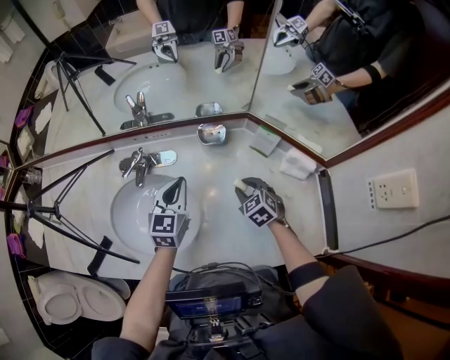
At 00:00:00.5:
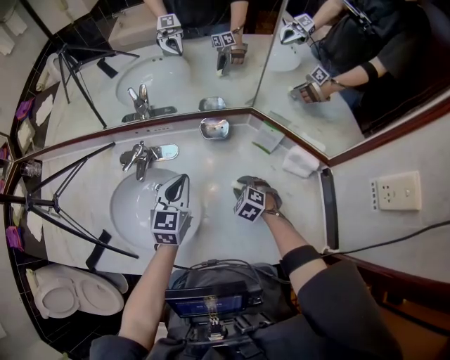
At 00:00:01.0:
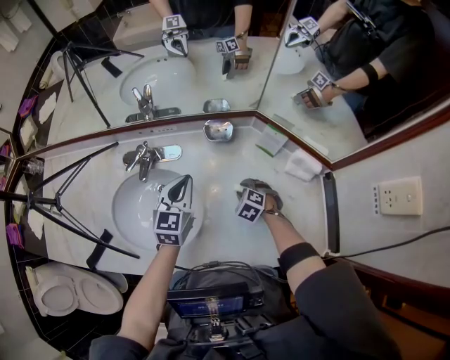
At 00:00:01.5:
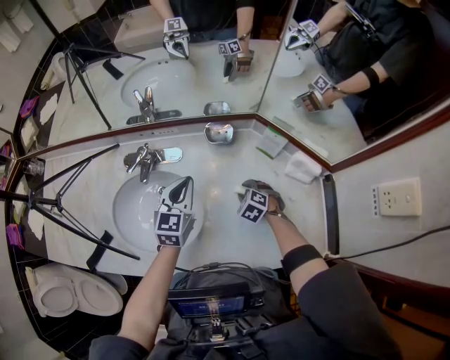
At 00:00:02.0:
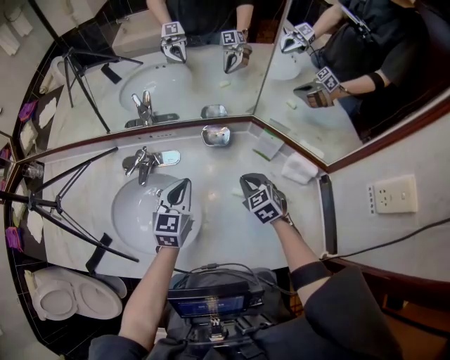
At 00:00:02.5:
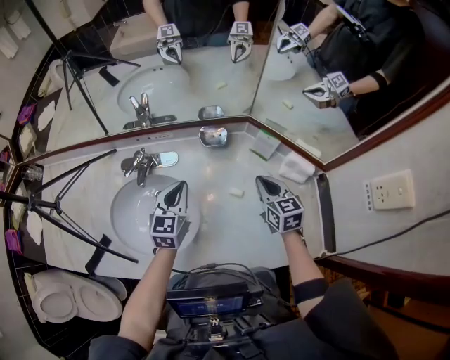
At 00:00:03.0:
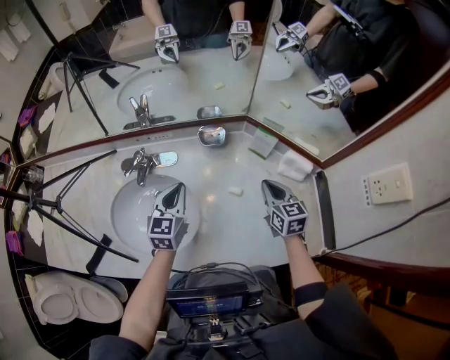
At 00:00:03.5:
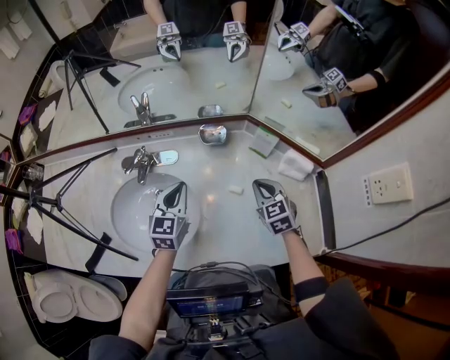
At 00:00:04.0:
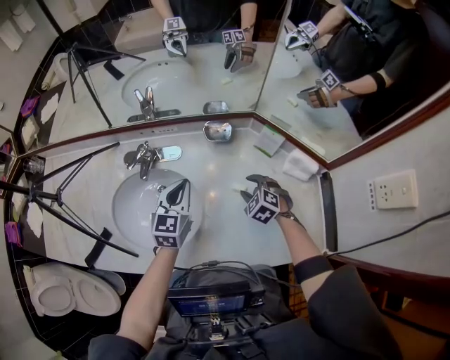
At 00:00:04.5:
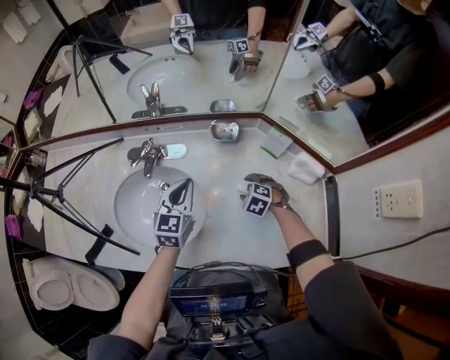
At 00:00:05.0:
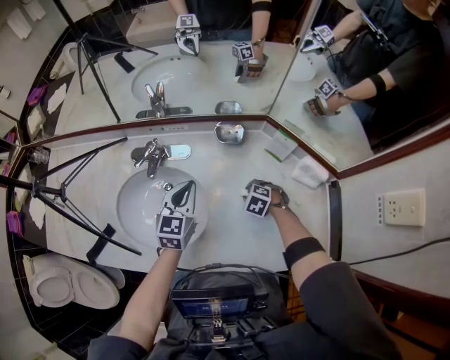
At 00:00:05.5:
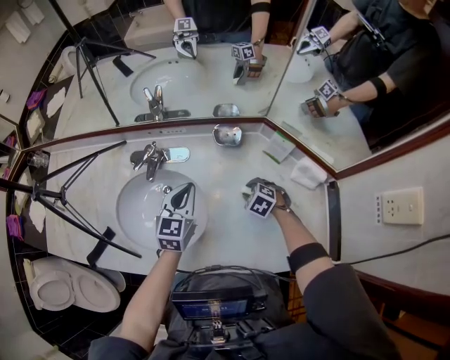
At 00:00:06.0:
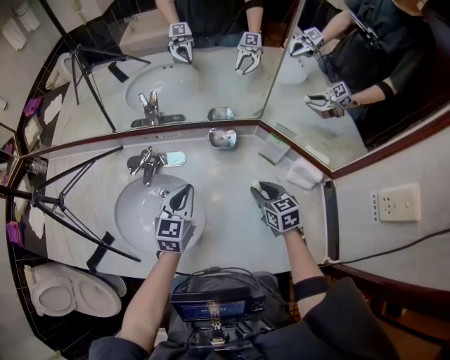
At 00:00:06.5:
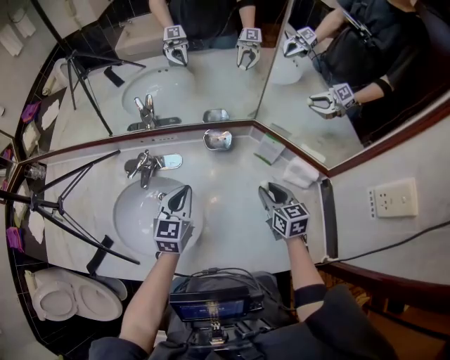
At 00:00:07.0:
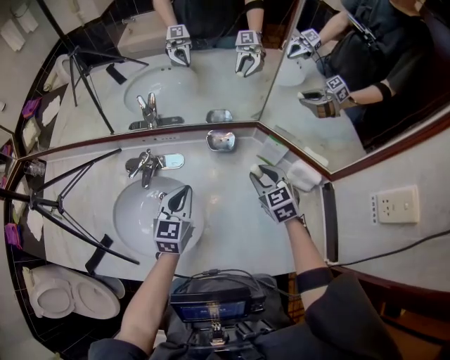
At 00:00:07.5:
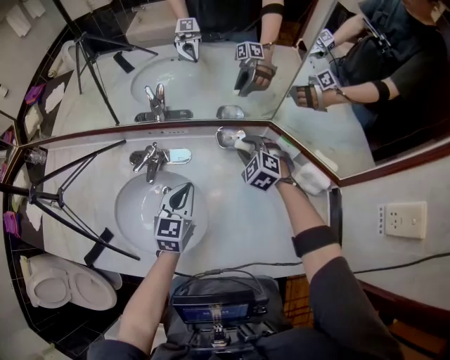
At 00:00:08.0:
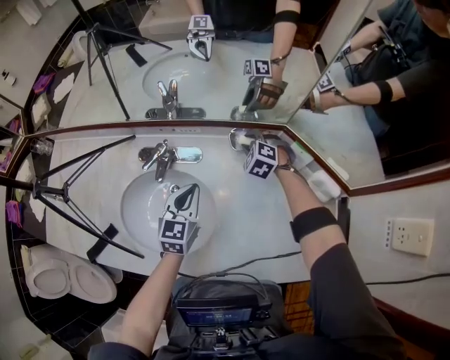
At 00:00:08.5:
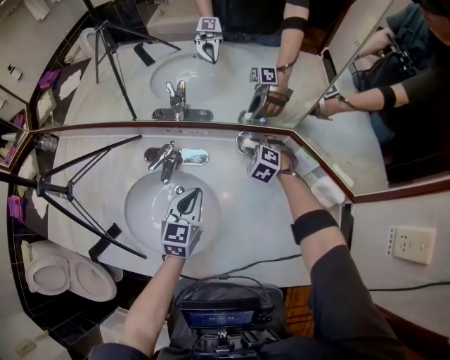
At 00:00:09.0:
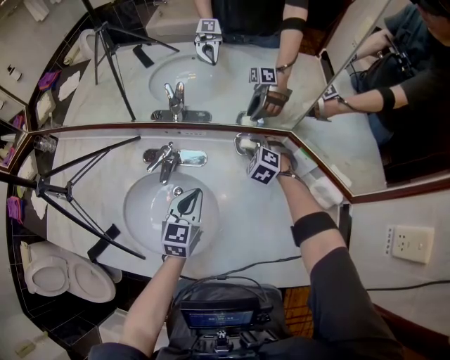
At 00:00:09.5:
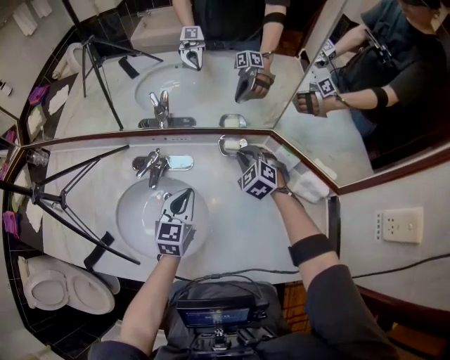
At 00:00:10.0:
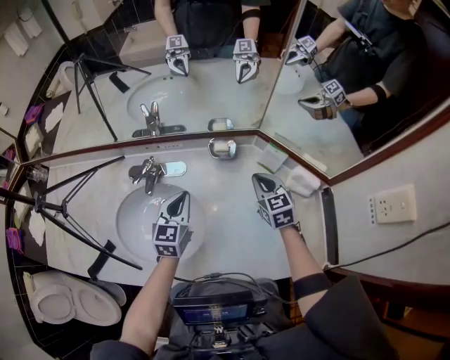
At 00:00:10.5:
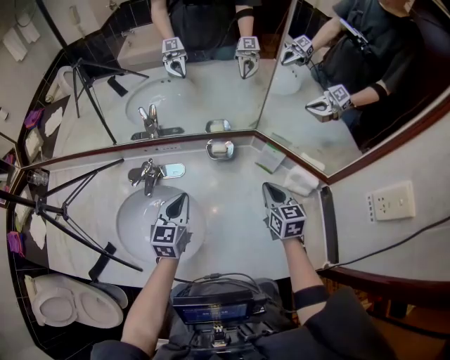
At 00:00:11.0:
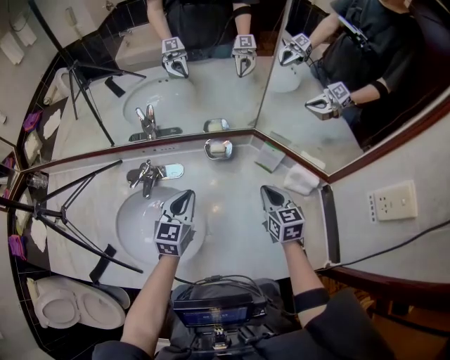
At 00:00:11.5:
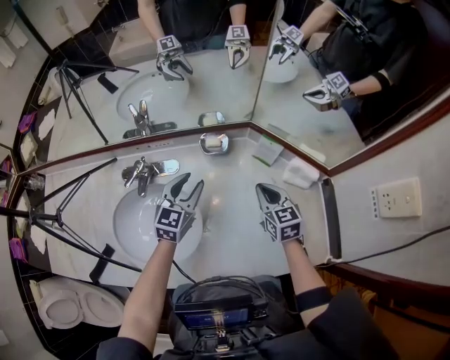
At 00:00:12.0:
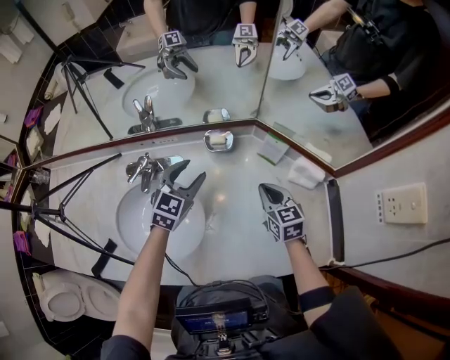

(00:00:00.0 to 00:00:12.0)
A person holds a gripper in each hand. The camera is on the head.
00:00:00.0 - 00:00:02.0: The right gripper moves about 10 cm downward and comes back, and closes.
00:00:02.0 - 00:00:04.0: The right gripper heads downward, covering roughly 5 cm, turns by approximately 20 degrees, and opens up.
00:00:04.0 - 00:00:06.0: The right gripper moves approximately 5 cm, and rotates around the line of its fingers by about 40 degrees, clockwise from behind.
00:00:06.0 - 00:00:08.0: The right gripper goes approximately 20 cm forward and to the left, and rotates around the line of its fingers by some 60 degrees, counterclockwise from behind.
00:00:08.0 - 00:00:10.0: The right gripper travels backward, to the right and upward by some 20 cm, twists about 50 degrees clockwise, seen from behind, and closes.
00:00:10.0 - 00:00:12.0: The left gripper is displaced forward and to the right by some 10 cm, swivels some 30 degrees, and opens up, while the right gripper shifts by some 5 cm.

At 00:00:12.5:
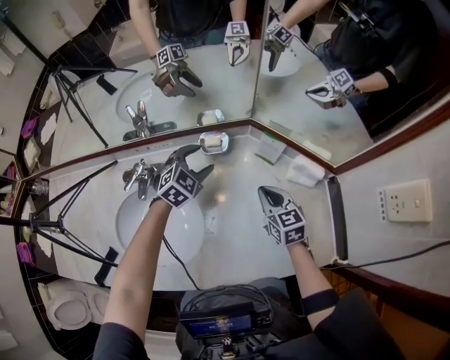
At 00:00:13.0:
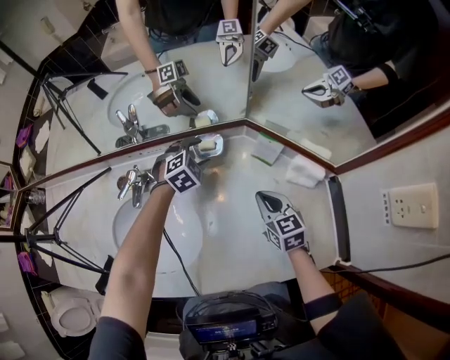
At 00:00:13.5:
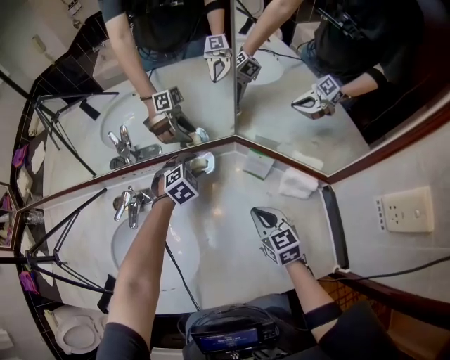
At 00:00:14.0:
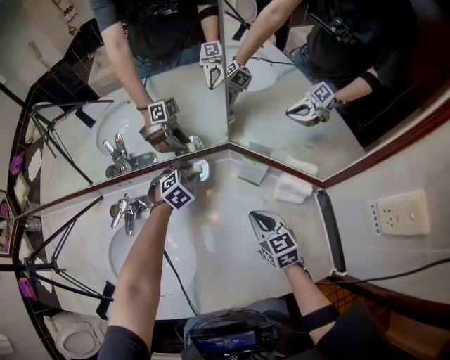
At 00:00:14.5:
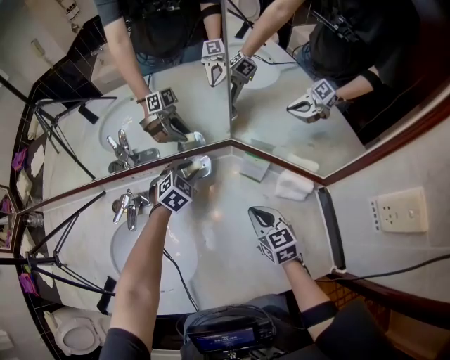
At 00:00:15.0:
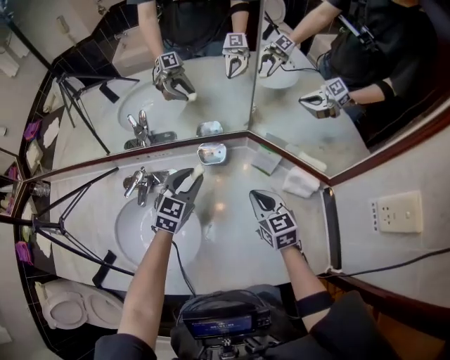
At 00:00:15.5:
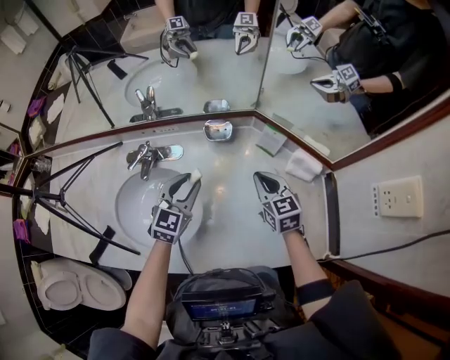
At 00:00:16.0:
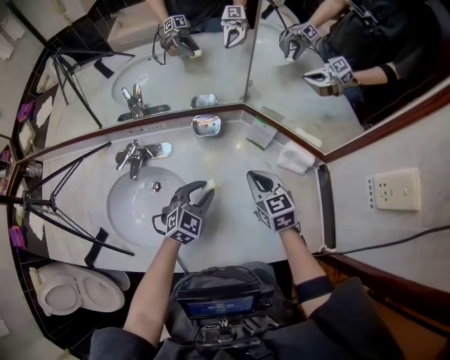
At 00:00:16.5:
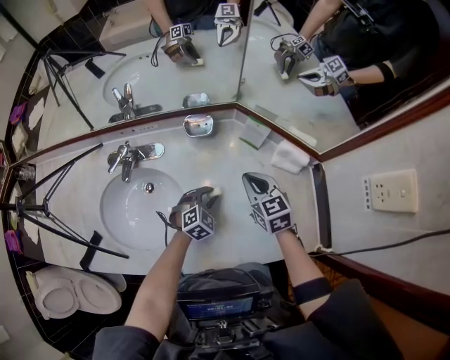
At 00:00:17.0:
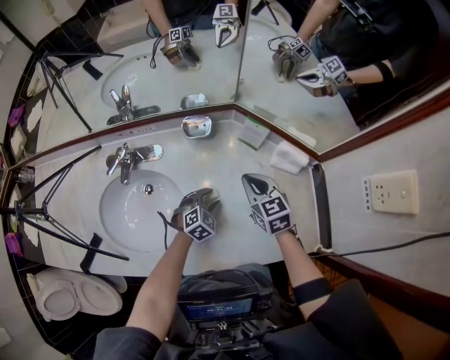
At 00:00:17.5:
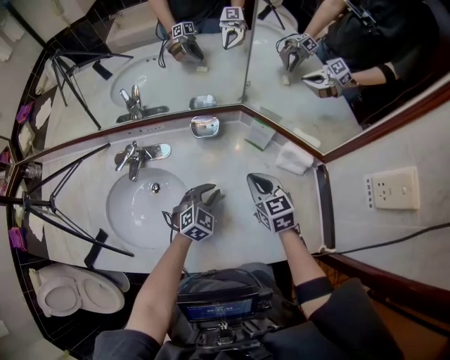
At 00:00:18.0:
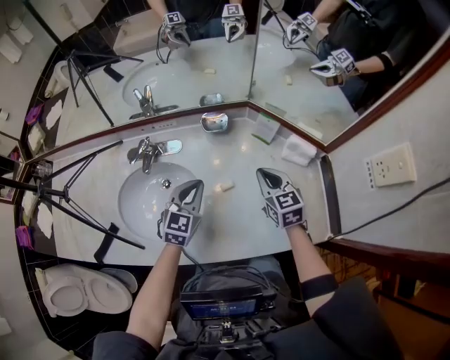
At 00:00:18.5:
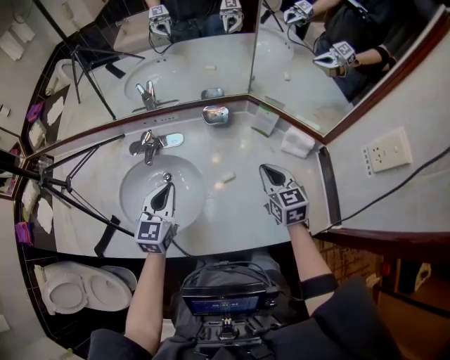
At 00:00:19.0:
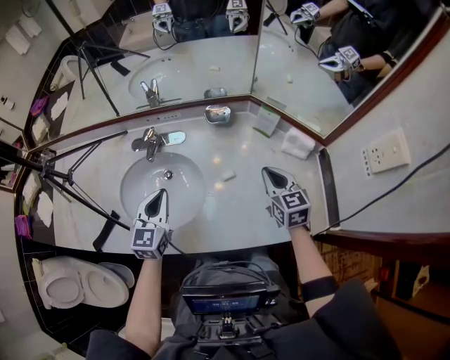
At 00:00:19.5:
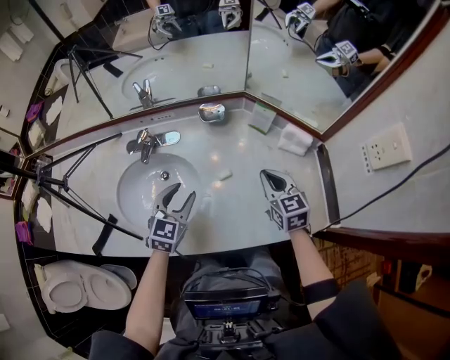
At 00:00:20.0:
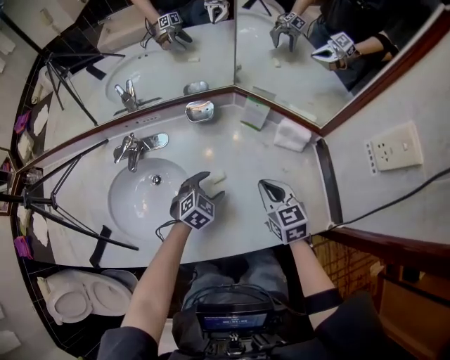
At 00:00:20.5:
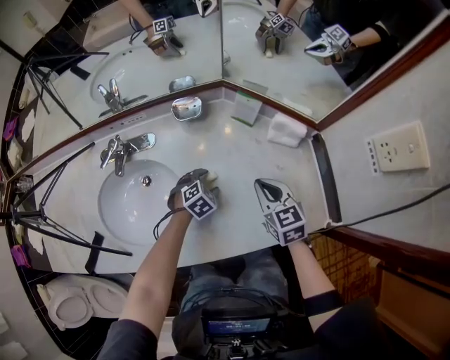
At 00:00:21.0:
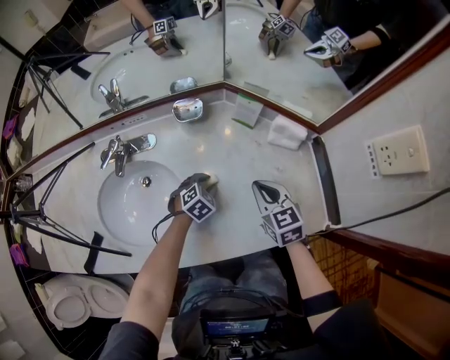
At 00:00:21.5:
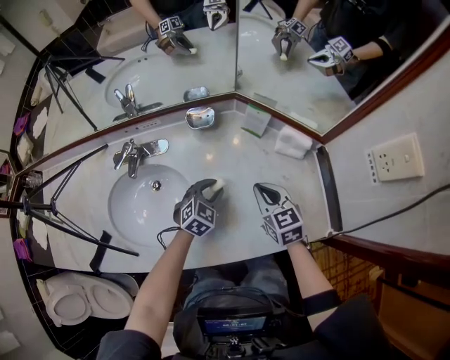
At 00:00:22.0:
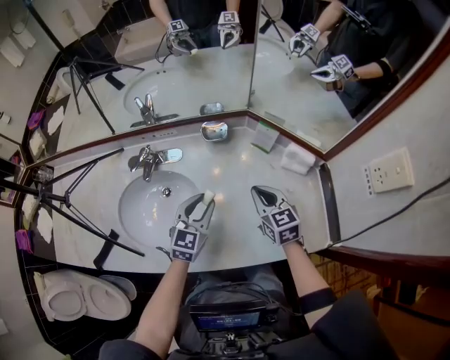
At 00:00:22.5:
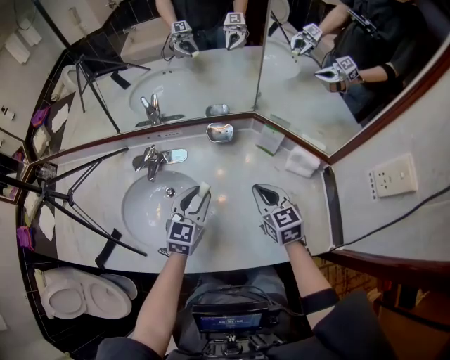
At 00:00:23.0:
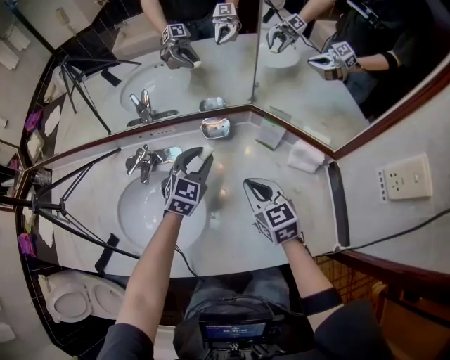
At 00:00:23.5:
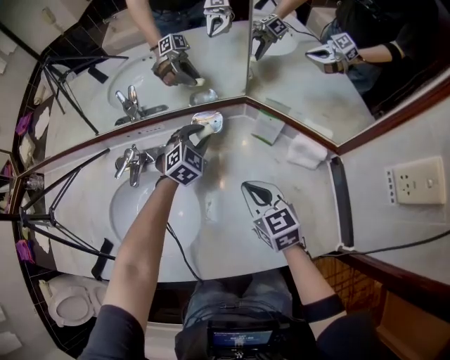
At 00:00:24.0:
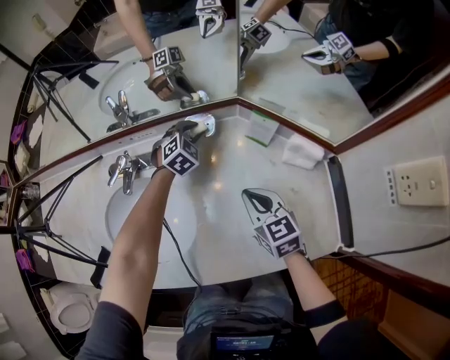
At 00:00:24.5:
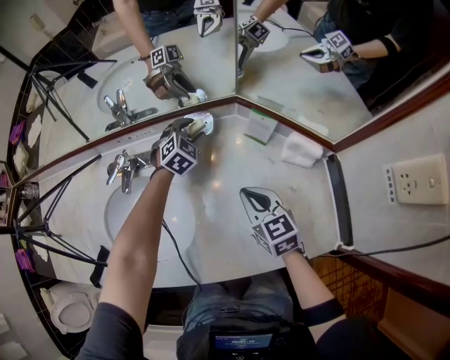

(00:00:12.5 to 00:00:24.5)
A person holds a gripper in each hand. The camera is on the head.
00:00:12.5 - 00:00:14.5: The left gripper travels forward and downward by about 10 cm, and closes.
00:00:14.5 - 00:00:16.5: The left gripper shifts roughly 25 cm backward.
00:00:16.5 - 00:00:18.5: The right gripper moves upward and backward, roughly 10 cm. Meanwhile the left gripper shifts about 30 cm upward and to the left, swivels some 50 degrees, and closes.
00:00:18.5 - 00:00:20.5: The right gripper travels downward by some 5 cm. Meanwhile the left gripper is displaced downward and to the right by roughly 35 cm, tilts its fingers about 40 degrees downward, and opens up.
00:00:20.5 - 00:00:22.5: The left gripper moves upward, about 25 cm, tilts its fingers roughly 40 degrees upward, and closes; the right gripper is displaced to the left and upward by about 10 cm.
00:00:22.5 - 00:00:24.5: The right gripper heads downward, covering some 5 cm; the left gripper moves forward and downward, approximately 25 cm, and turns by approximately 40 degrees.

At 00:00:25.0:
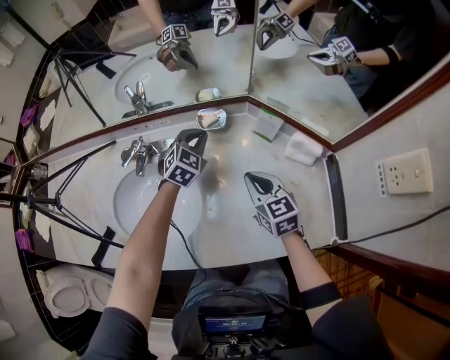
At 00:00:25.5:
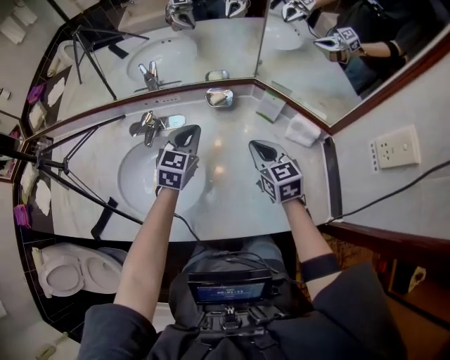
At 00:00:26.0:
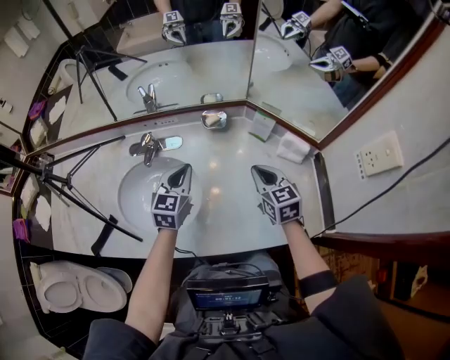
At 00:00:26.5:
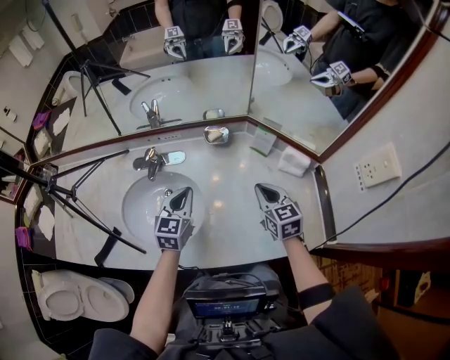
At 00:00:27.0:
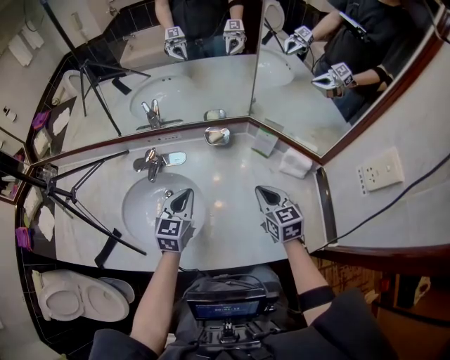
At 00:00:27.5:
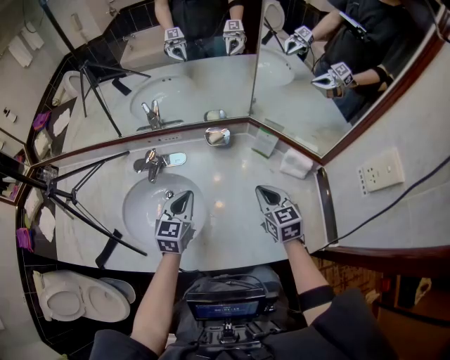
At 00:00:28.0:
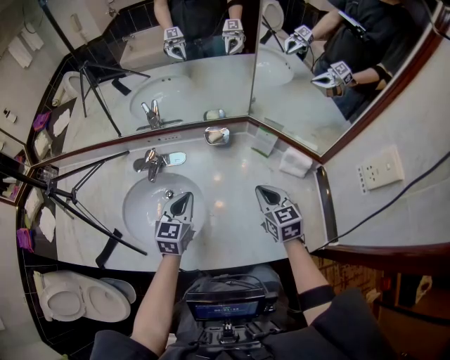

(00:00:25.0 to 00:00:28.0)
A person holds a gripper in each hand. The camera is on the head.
00:00:25.0 - 00:00:26.5: The right gripper shifts by some 5 cm. The left gripper is displaced backward, to the left and upward by approximately 20 cm, and swivels some 30 degrees.
00:00:26.5 - 00:00:28.0: Neither gripper changes place.
